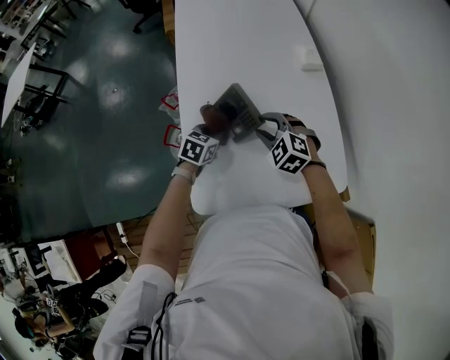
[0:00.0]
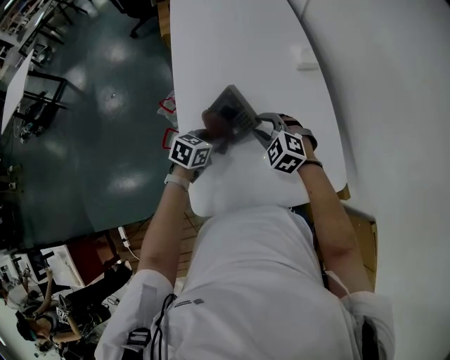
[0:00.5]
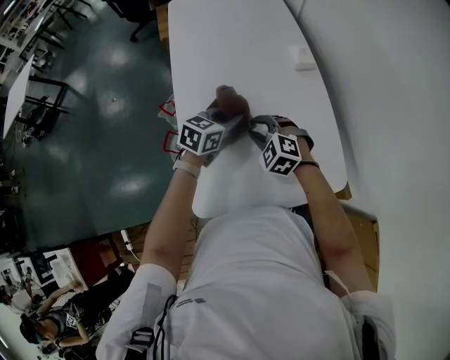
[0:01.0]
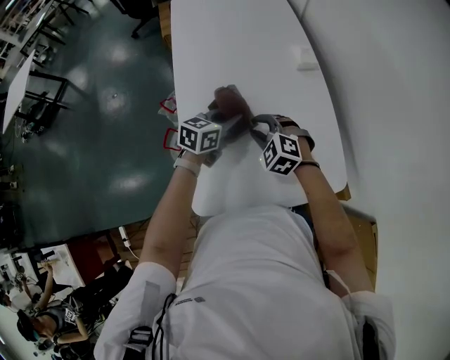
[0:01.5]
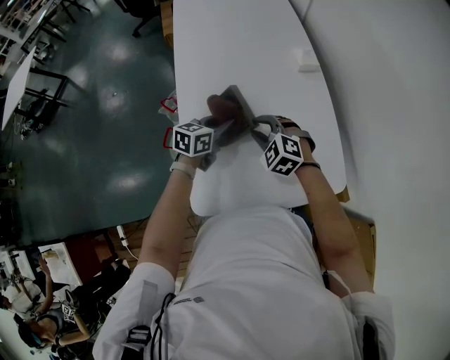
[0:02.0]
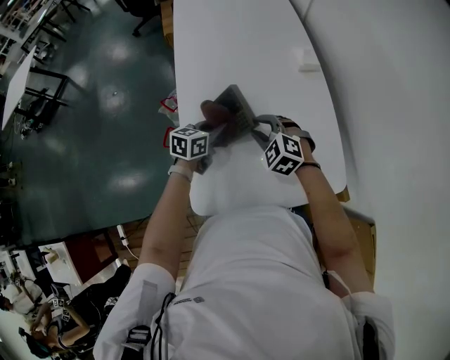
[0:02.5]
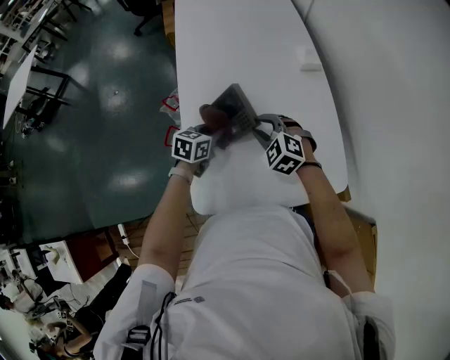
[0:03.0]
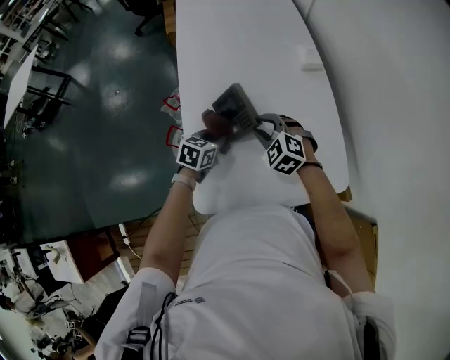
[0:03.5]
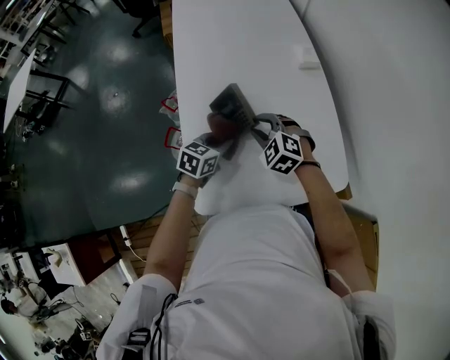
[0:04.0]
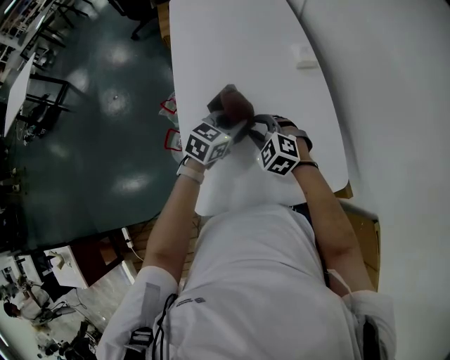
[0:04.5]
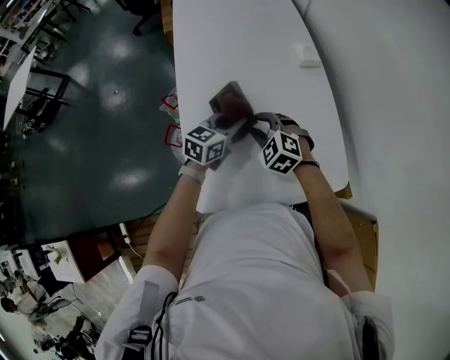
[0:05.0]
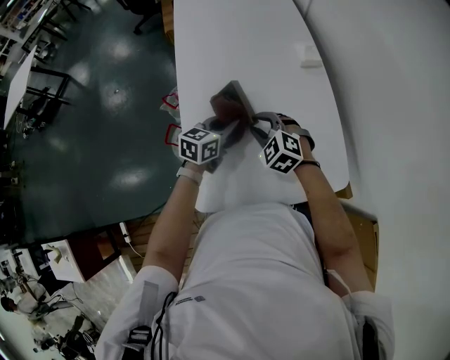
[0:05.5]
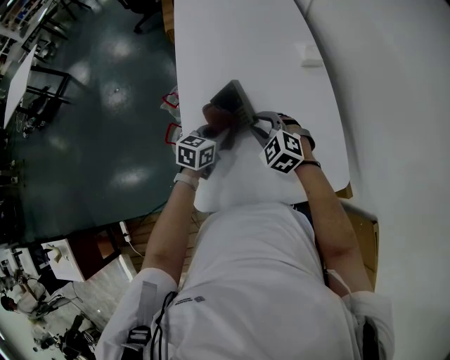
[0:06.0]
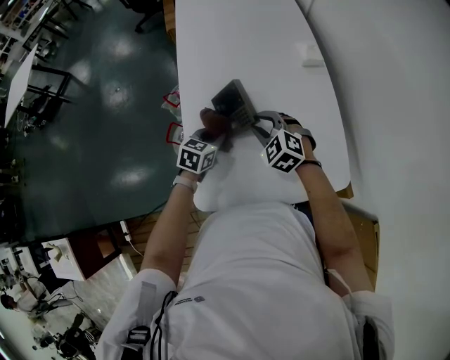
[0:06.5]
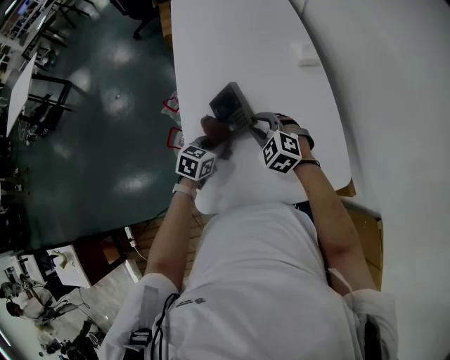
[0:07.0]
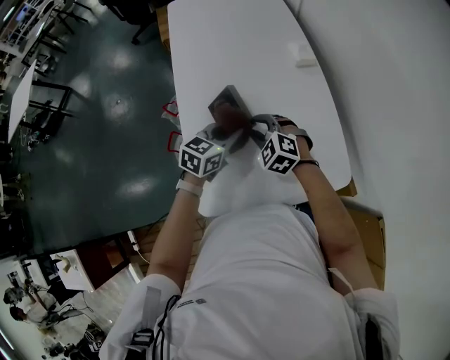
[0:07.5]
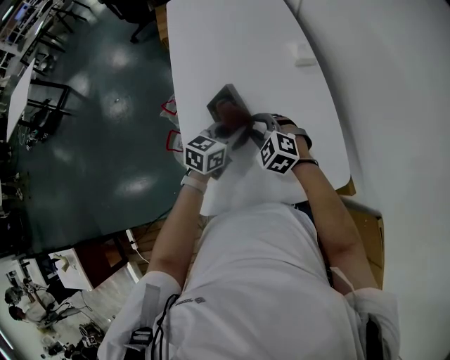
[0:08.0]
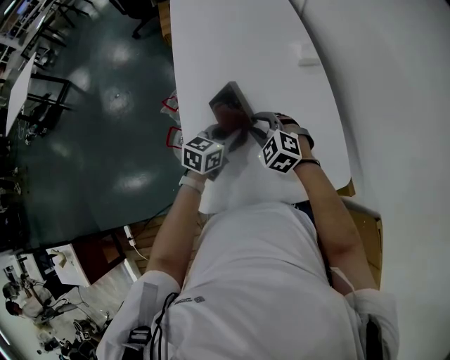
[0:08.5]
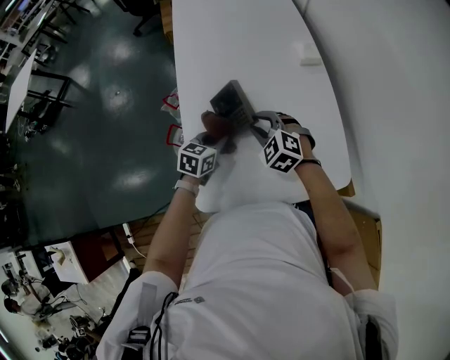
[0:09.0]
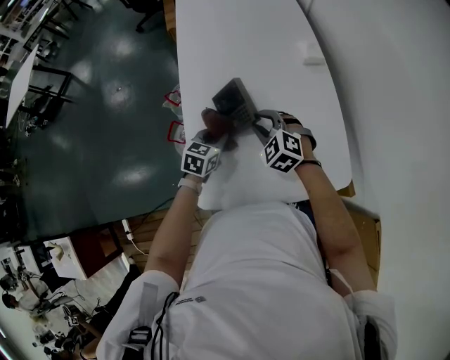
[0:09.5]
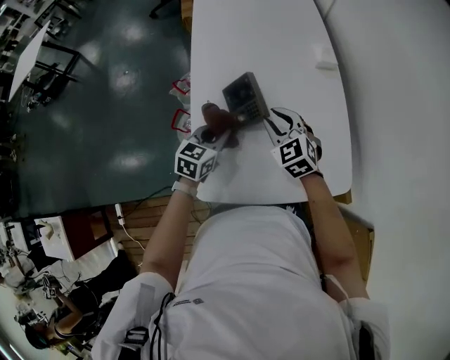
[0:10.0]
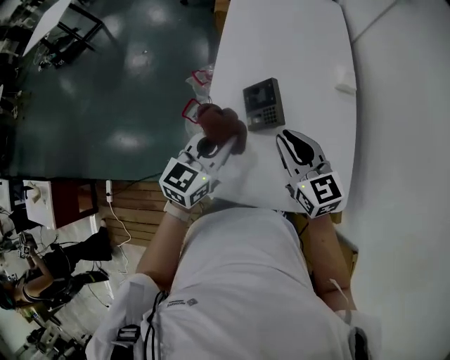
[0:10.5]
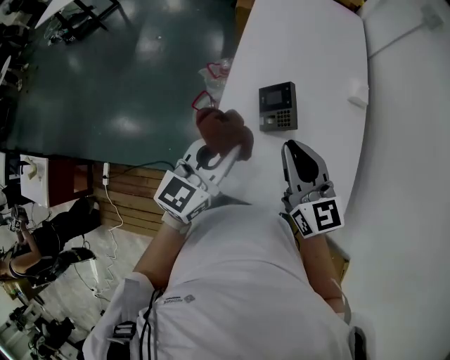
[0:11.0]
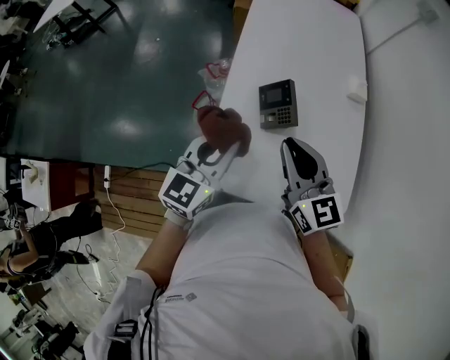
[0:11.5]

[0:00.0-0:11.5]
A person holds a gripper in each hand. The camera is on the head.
0:00.0 to 0:02.0: The left gripper moves upward, approximately 5 cm, and changes its angle by approximately 20 degrees.
0:02.0 to 0:04.0: The left gripper moves backward, approximately 5 cm.
0:06.0 to 0:07.5: The left gripper shifts about 5 cm upward.
0:07.5 to 0:09.5: The left gripper heads downward and to the left, covering about 10 cm.
0:09.5 to 0:11.5: Both grippers travel together upward and backward, about 25 cm. The right gripper angles its fingers upward, by some 40 degrees, and closes its fingers. The left gripper swivels approximately 30 degrees.

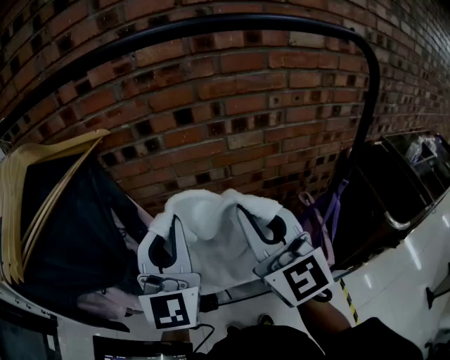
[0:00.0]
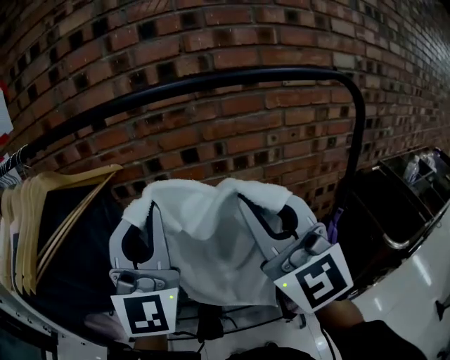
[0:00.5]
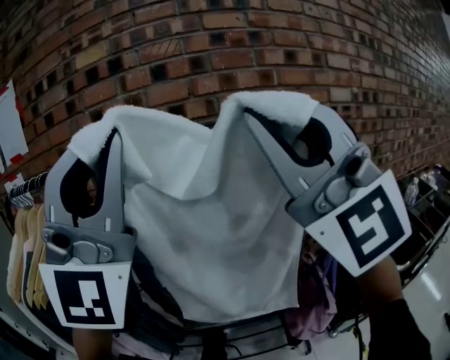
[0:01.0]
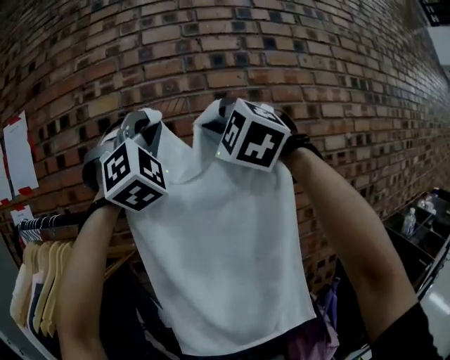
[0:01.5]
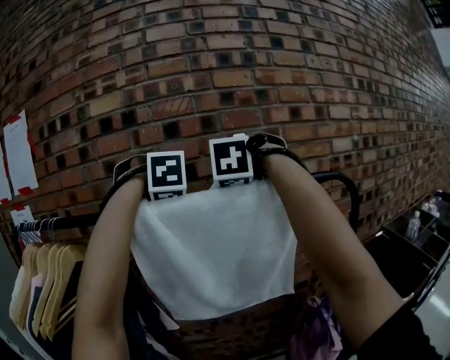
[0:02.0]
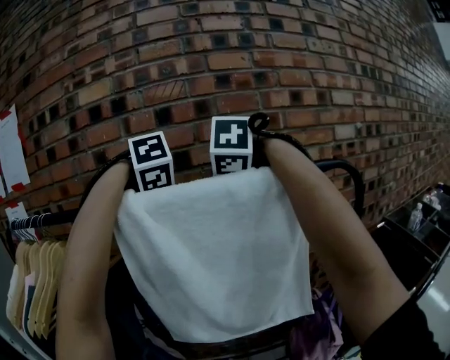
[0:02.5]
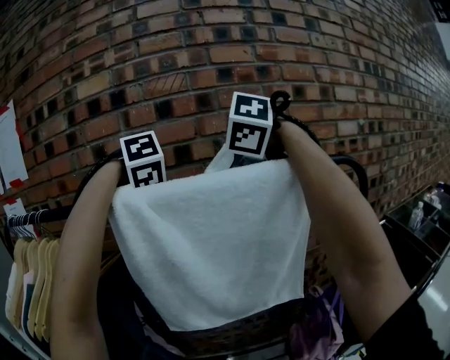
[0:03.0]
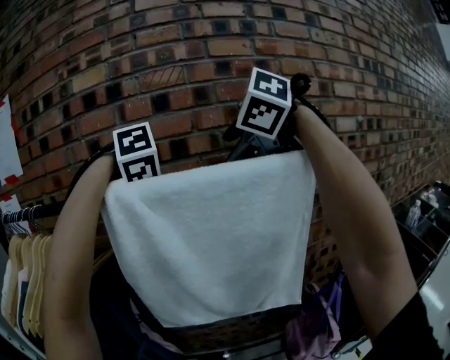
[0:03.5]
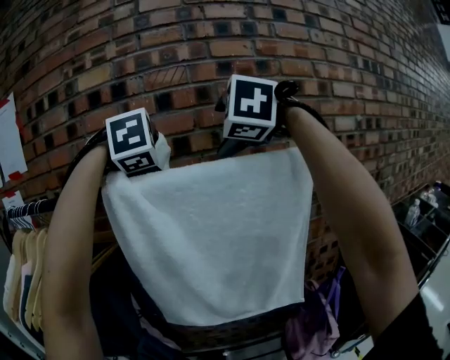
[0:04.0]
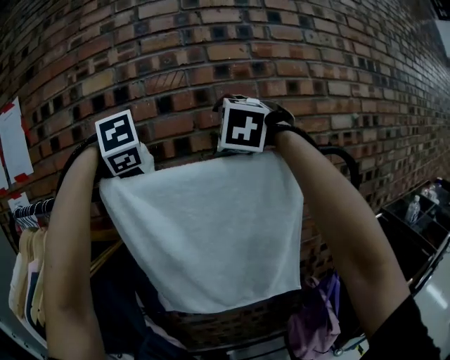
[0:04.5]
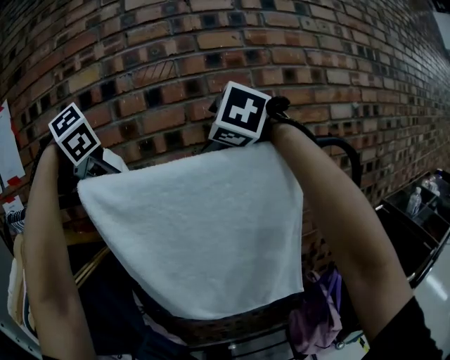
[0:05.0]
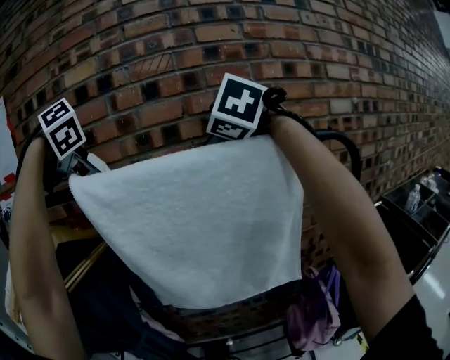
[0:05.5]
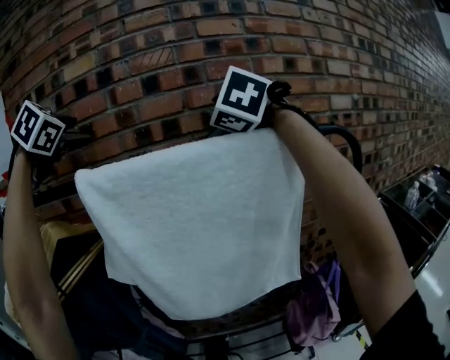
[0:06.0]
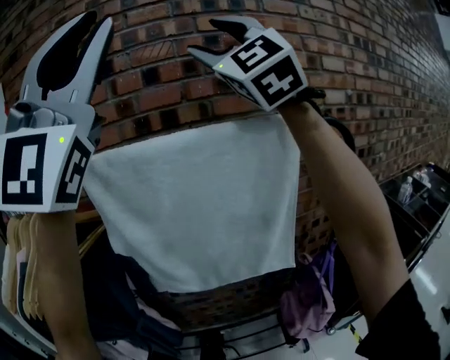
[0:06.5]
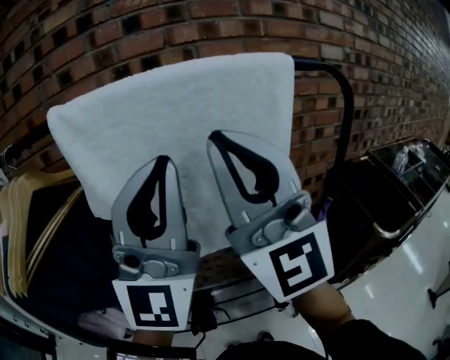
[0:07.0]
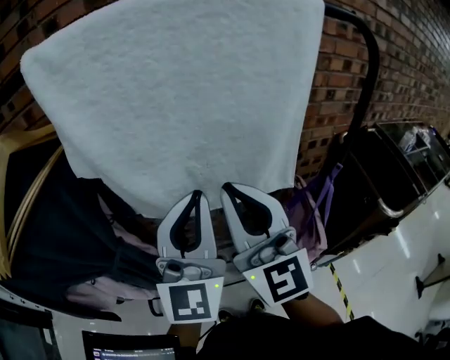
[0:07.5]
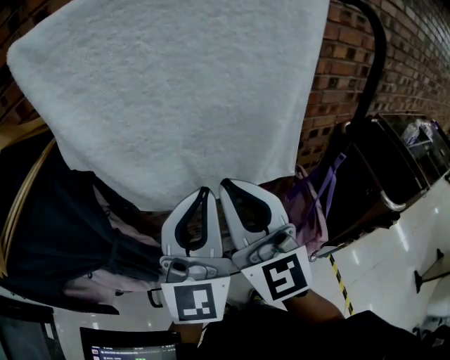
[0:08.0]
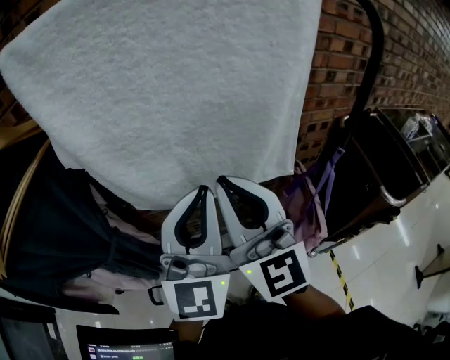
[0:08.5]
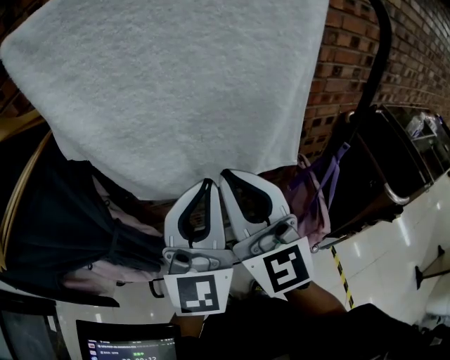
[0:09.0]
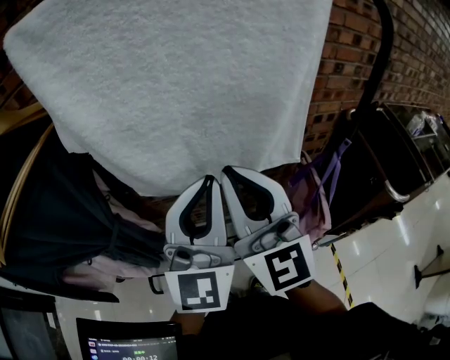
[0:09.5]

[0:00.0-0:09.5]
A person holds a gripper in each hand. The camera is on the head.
0:00.0 to 0:02.0: The left gripper shifts approximately 30 cm forward and upward, and tilts its fingers approximately 60 degrees downward; the right gripper shifts roughly 30 cm upward and forward, and points its fingers about 50 degrees further downward.
0:02.0 to 0:04.0: The left gripper opens its fingers, while the right gripper shifts approximately 5 cm upward, and opens.
0:04.0 to 0:05.5: The left gripper travels to the left by about 15 cm, and rotates around the line of its fingers by approximately 40 degrees, counterclockwise from behind.
0:05.5 to 0:07.5: The right gripper moves downward and backward, roughly 35 cm, tilts its fingers approximately 50 degrees upward, and closes, while the left gripper shifts some 35 cm downward, backward and to the right, tilts its fingers approximately 80 degrees upward, and closes its fingers.
0:07.5 to 0:09.5: There are only small adjustments of the grippers.

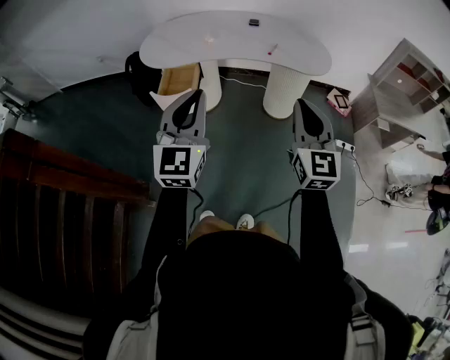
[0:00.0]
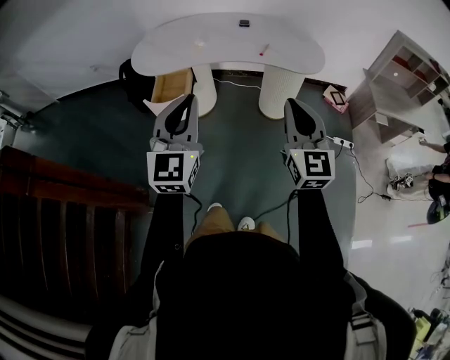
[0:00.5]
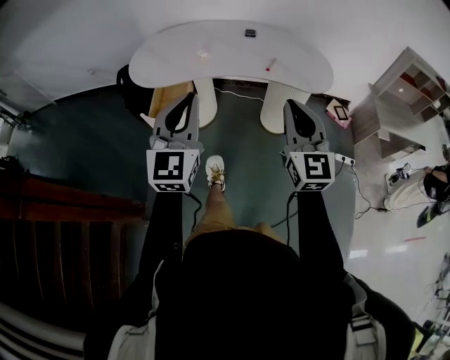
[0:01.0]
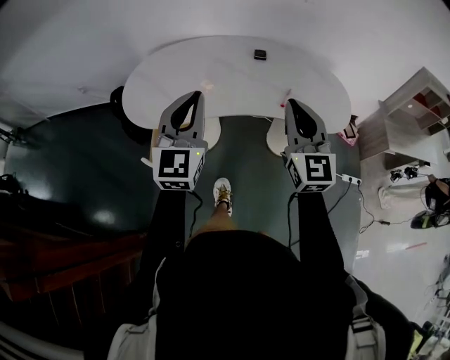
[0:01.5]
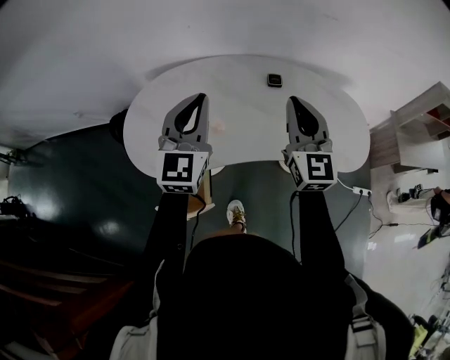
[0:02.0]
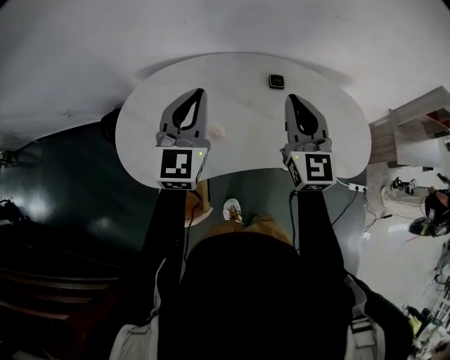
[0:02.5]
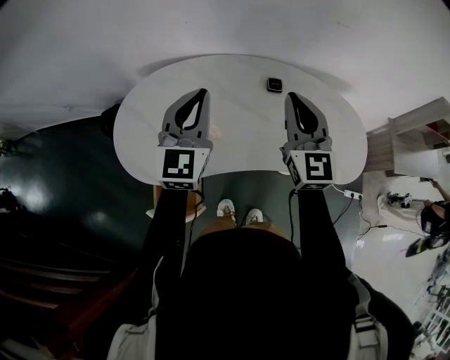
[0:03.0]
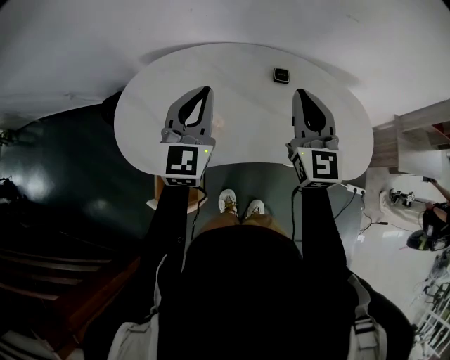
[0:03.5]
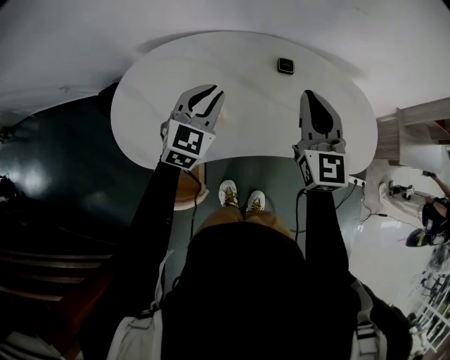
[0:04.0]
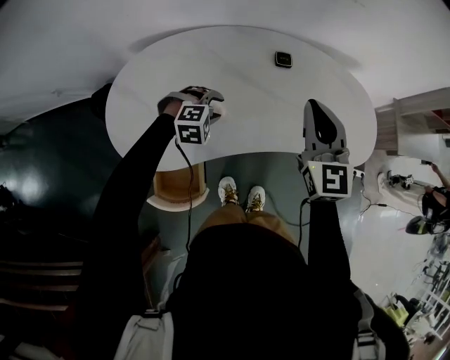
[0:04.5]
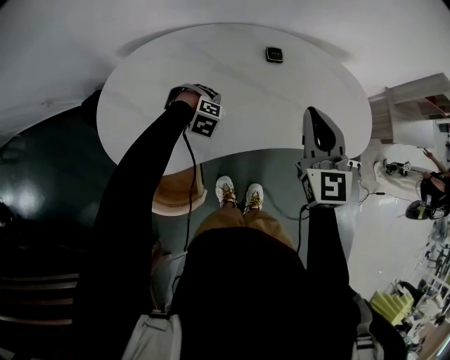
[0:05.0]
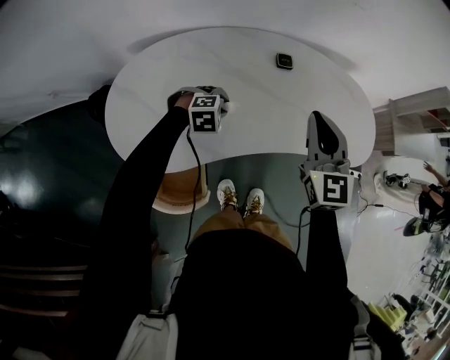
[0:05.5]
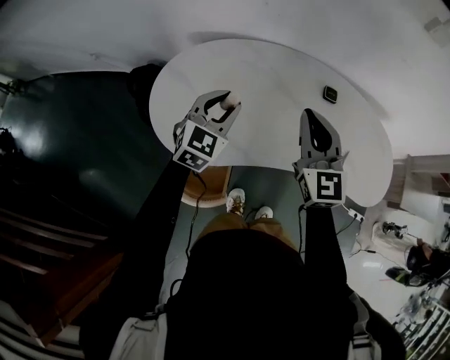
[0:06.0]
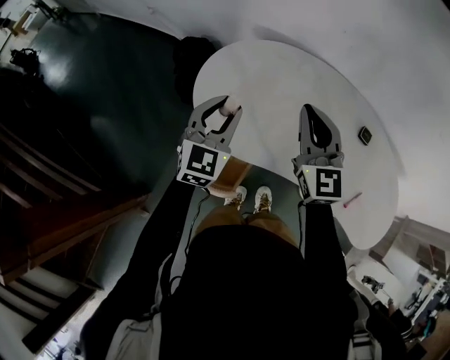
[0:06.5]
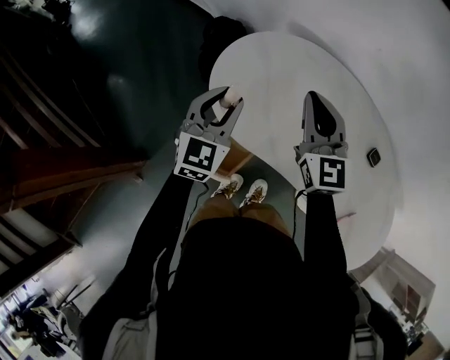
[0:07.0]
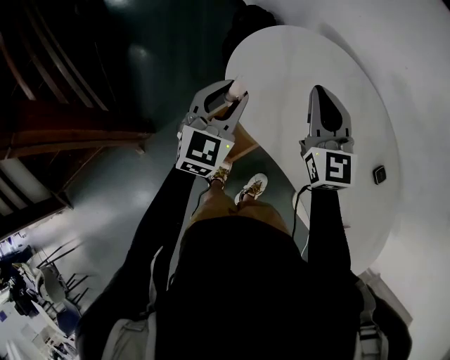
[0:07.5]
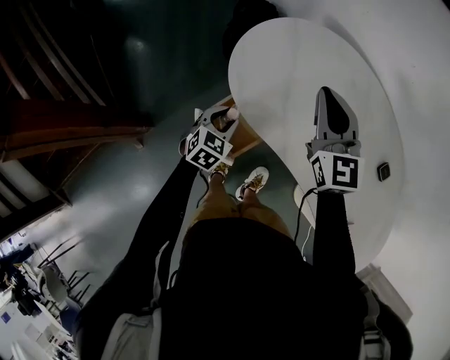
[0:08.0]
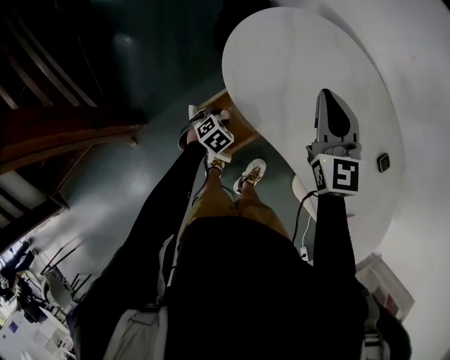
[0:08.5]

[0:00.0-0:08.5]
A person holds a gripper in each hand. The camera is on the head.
0:00.0 to 0:02.0: The two grippers travel together, forward, some 50 cm.
0:02.0 to 0:04.0: The right gripper changes place by about 5 cm. Meanwhile the left gripper travels downward and forward by roughly 15 cm, and turns by approximately 20 degrees.
0:04.0 to 0:06.5: The left gripper moves roughly 25 cm downward and comes back, and swivels about 30 degrees. The right gripper changes place by approximately 30 cm, and rotates roughly 30 degrees.
0:06.5 to 0:08.5: The right gripper shifts roughly 5 cm downward, and rotates some 20 degrees. The left gripper goes approximately 35 cm downward, and tips its fingers downward by about 60 degrees.
